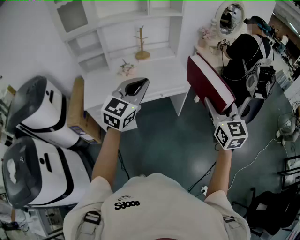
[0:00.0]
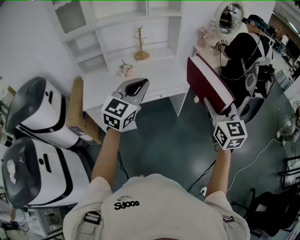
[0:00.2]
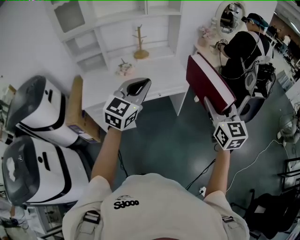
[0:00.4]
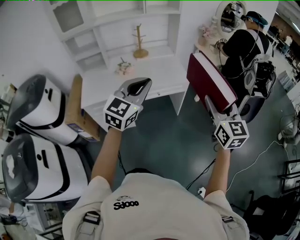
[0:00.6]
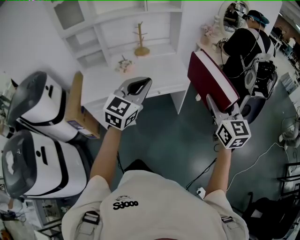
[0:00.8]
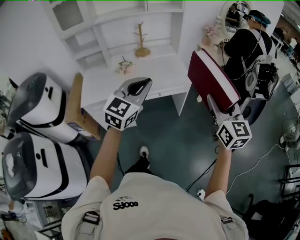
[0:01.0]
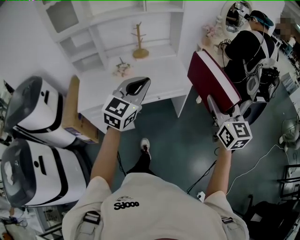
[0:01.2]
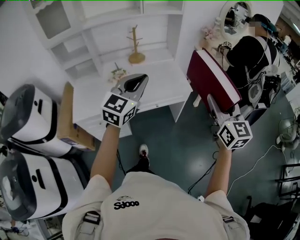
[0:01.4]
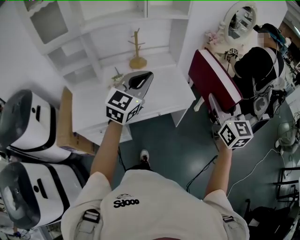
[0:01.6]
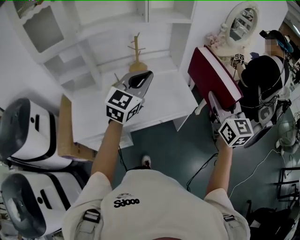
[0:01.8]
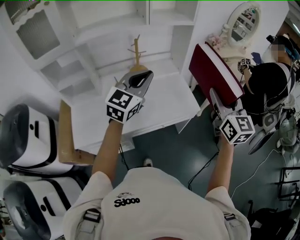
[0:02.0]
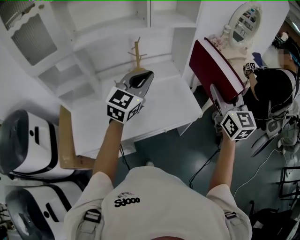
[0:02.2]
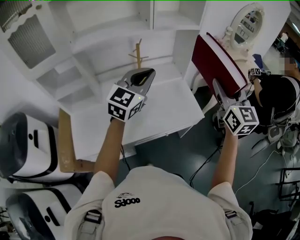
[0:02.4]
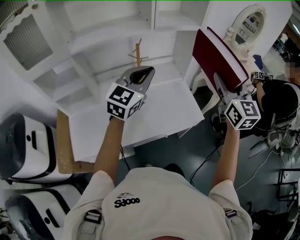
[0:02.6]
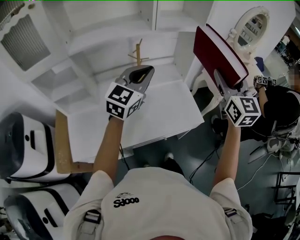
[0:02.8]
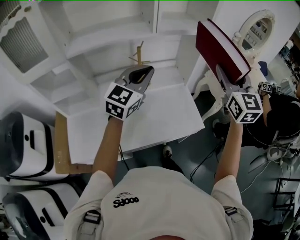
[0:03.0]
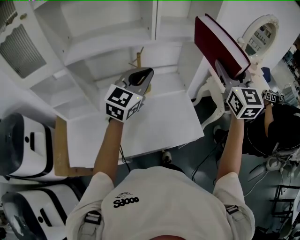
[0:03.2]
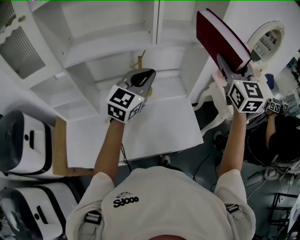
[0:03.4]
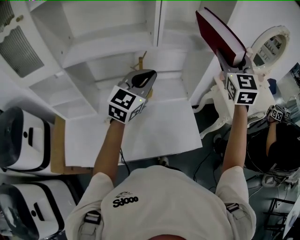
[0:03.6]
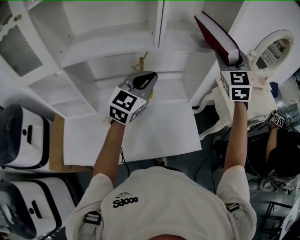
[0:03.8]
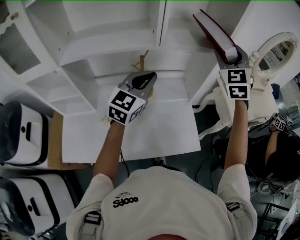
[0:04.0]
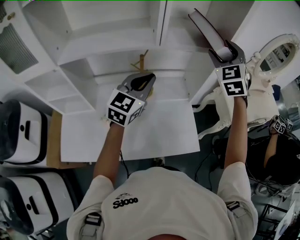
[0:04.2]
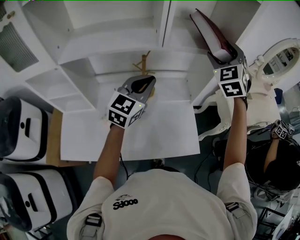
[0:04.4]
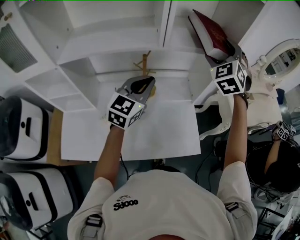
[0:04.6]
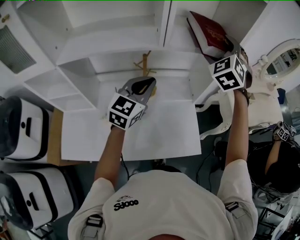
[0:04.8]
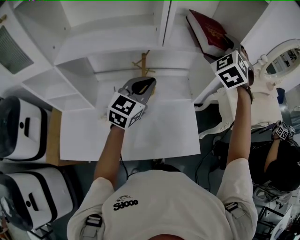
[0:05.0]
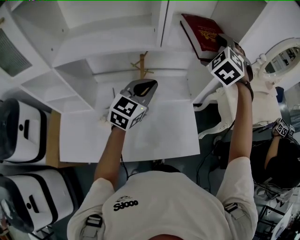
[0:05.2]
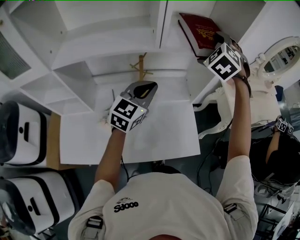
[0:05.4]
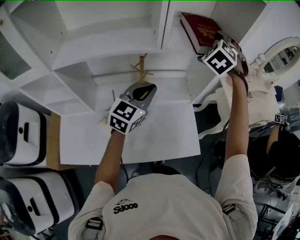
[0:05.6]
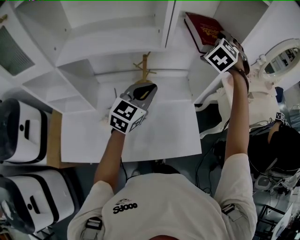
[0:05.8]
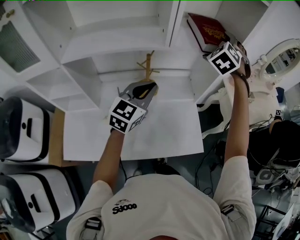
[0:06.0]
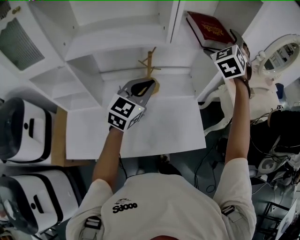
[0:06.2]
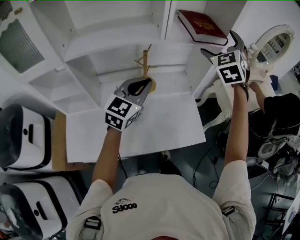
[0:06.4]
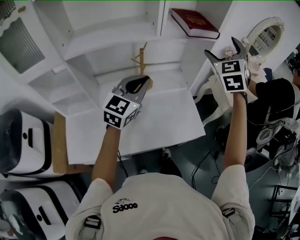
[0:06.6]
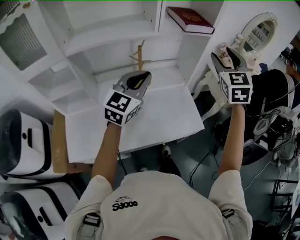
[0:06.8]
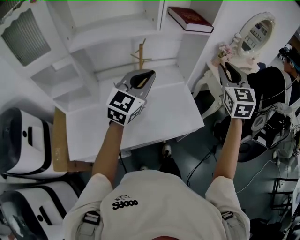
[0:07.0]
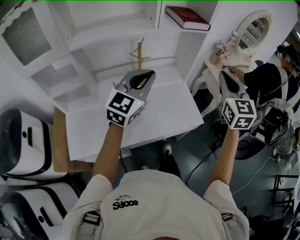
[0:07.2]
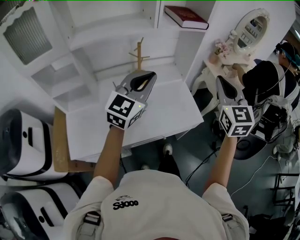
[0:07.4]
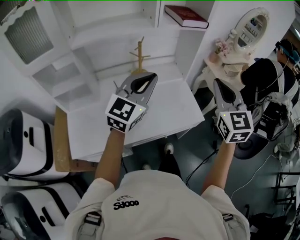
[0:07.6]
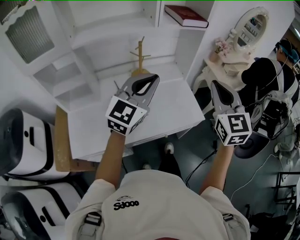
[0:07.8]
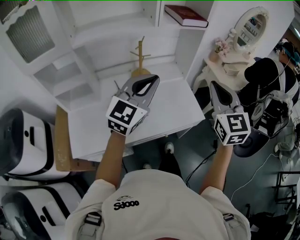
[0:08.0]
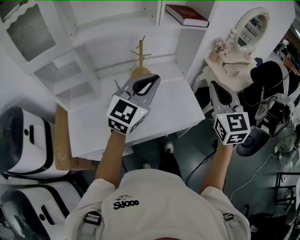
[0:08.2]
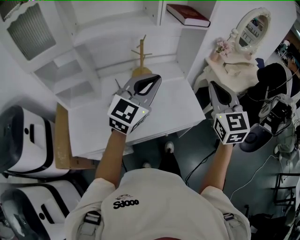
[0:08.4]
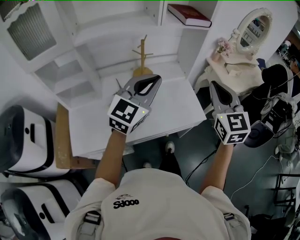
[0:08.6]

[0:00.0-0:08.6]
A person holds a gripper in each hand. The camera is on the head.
0.0 to 1.4 s: The grippers both shift forward by about 15 cm.
1.4 to 2.8 s: The left gripper travels forward by approximately 30 cm. Meanwhile the right gripper travels forward and to the left by approximately 35 cm.
2.8 to 4.4 s: The left gripper travels forward by some 15 cm. The right gripper shifts about 30 cm forward, and turns by some 40 degrees.
4.4 to 5.8 s: The right gripper shifts approximately 5 cm forward, swivels approximately 30 degrees, and opens up.
5.8 to 7.2 s: The right gripper moves backward and to the right, about 35 cm, rotates around the line of its fingers by about 50 degrees, clockwise from behind, and closes its fingers. The left gripper moves backward and upward, roughly 20 cm.
7.2 to 8.6 s: The left gripper moves backward, roughly 5 cm; the right gripper shifts approximately 10 cm backward.

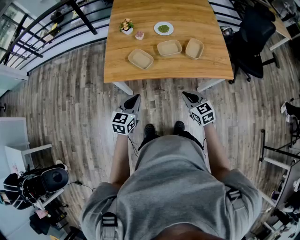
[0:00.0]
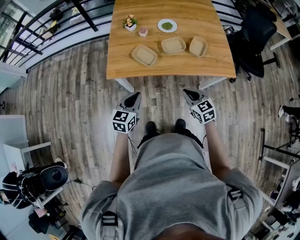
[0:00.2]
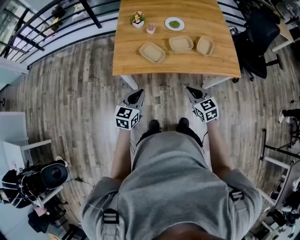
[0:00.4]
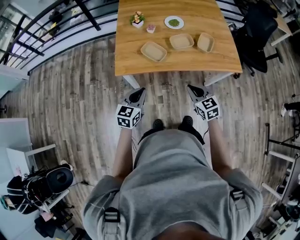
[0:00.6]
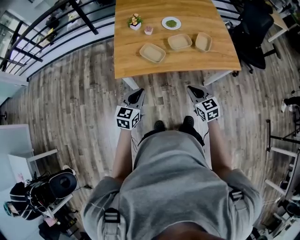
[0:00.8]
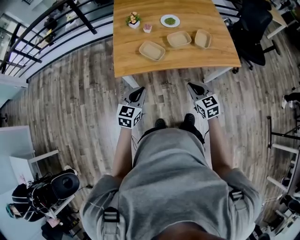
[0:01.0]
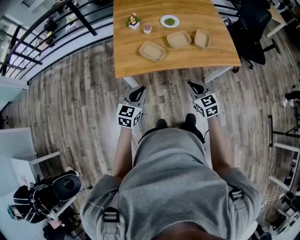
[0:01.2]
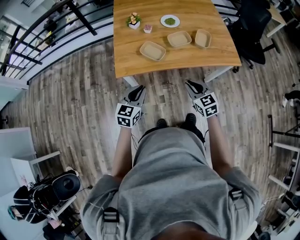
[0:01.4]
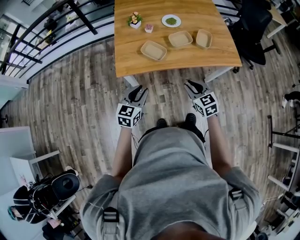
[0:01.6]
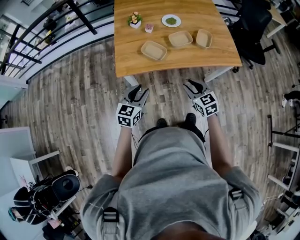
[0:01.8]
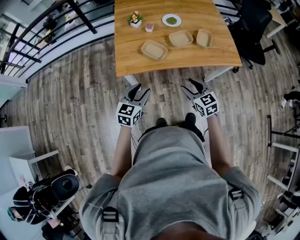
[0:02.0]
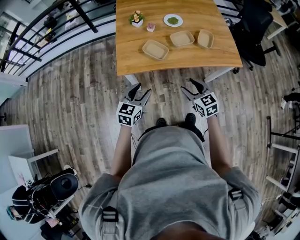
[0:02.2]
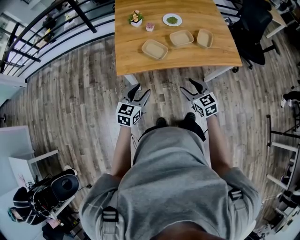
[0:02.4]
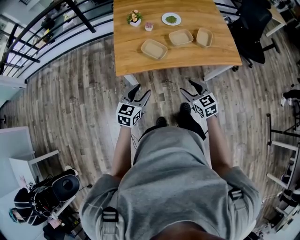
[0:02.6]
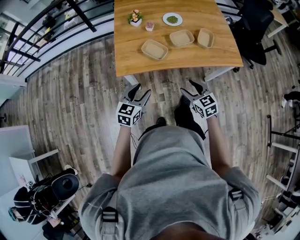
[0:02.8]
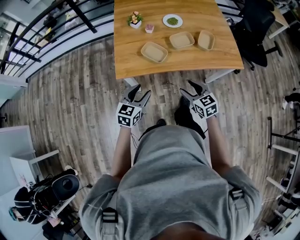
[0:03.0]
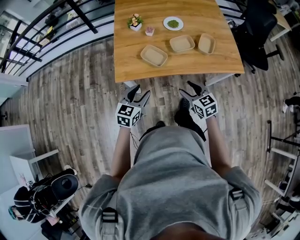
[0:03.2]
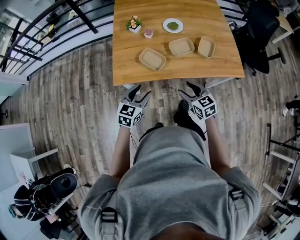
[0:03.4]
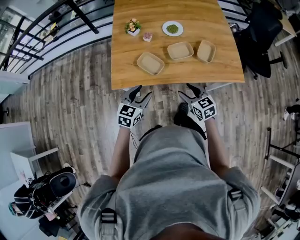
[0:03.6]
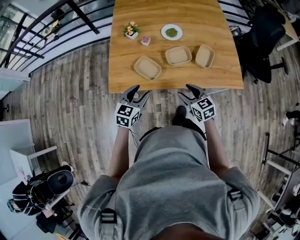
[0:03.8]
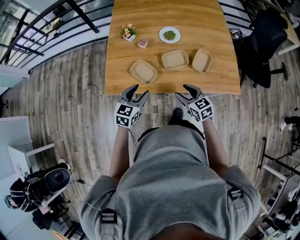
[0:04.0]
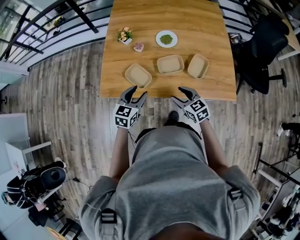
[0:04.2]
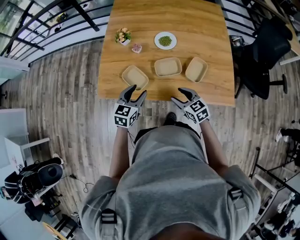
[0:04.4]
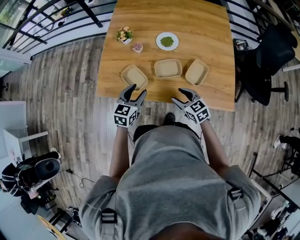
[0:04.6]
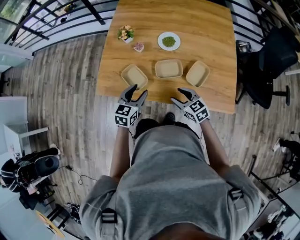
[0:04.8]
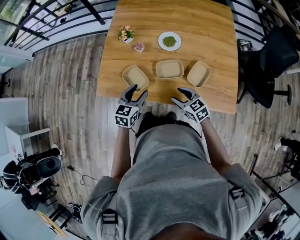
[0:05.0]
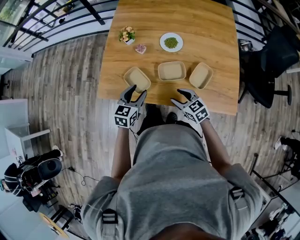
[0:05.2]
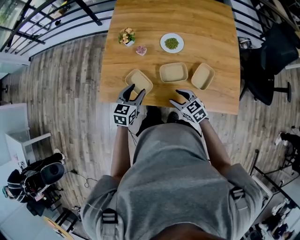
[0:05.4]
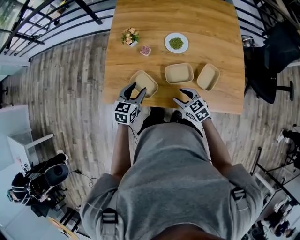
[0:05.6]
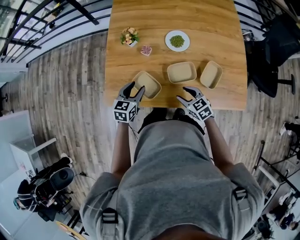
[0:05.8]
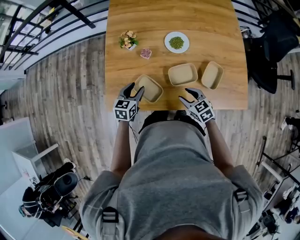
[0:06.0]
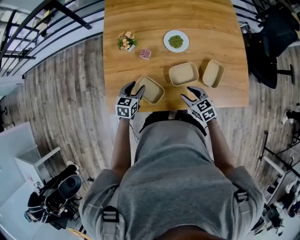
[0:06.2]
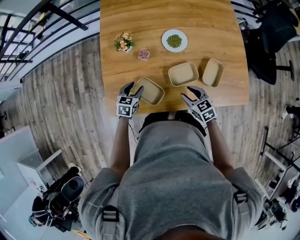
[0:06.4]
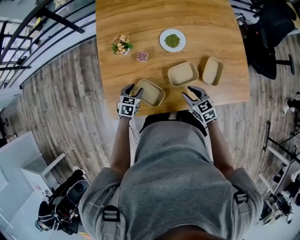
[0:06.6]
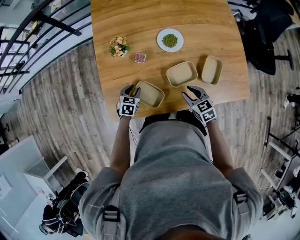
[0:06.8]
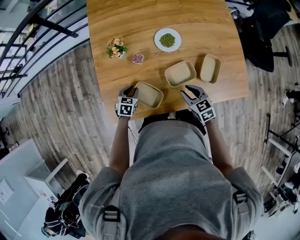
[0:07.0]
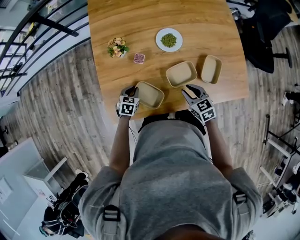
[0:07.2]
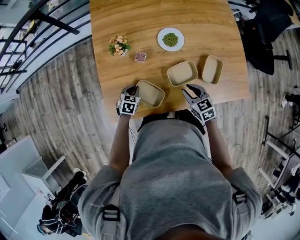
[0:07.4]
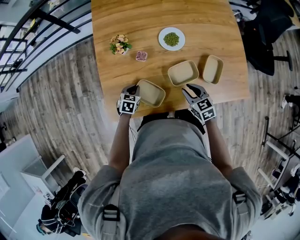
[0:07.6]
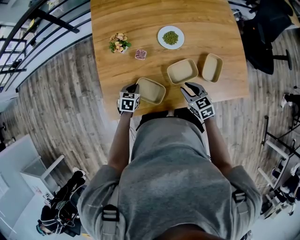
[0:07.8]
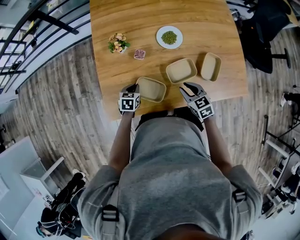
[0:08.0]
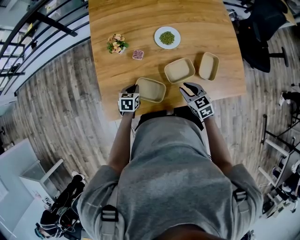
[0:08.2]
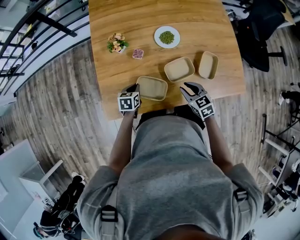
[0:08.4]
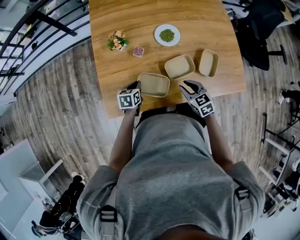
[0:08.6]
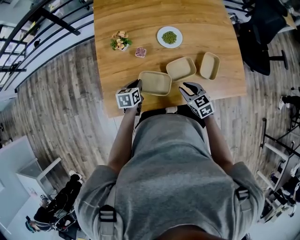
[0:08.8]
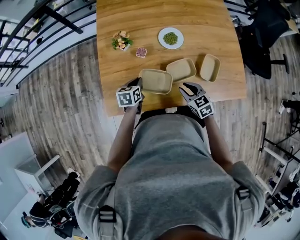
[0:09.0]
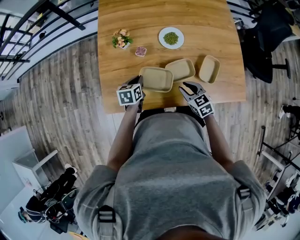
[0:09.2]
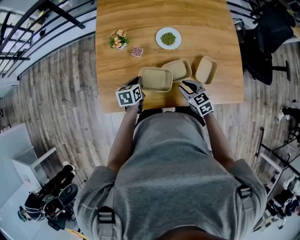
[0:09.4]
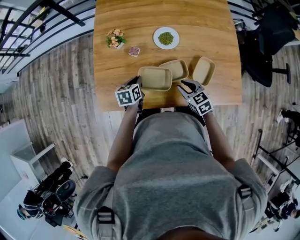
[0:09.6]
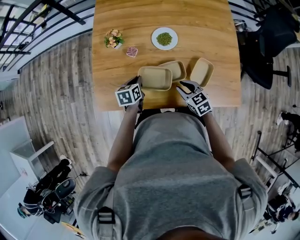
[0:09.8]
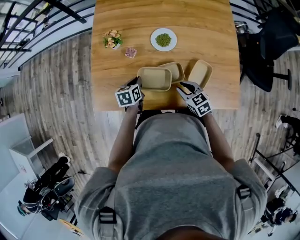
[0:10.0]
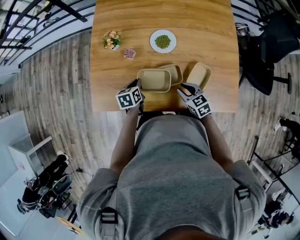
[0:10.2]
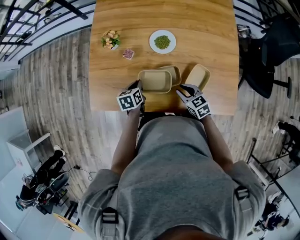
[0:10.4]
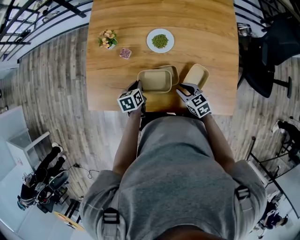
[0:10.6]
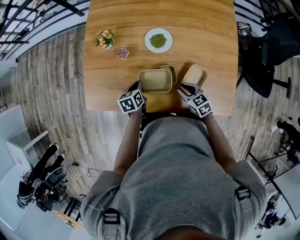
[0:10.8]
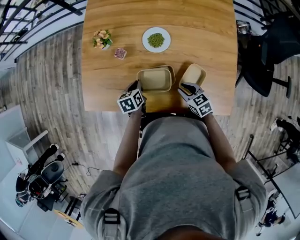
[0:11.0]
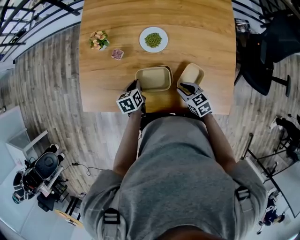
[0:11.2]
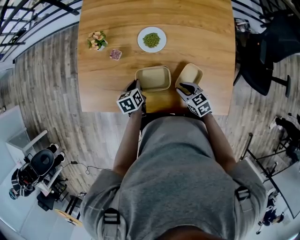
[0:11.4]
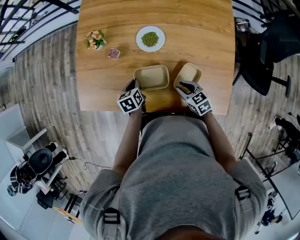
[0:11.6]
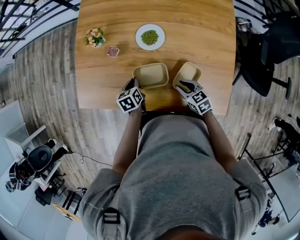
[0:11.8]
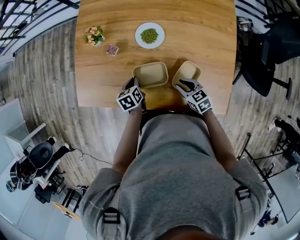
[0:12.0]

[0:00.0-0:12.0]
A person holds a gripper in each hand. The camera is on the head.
0.0 to 1.6 s: The grippers both shift to the left by about 10 cm. The right gripper opens its fingers, while the left gripper opens its fingers.
1.6 to 3.0 s: The right gripper opens up. Meanwhile the left gripper opens up.
3.0 to 4.4 s: The two grippers go approximately 25 cm forward and to the right.
4.4 to 6.0 s: The left gripper moves forward, downward and to the left, roughly 20 cm. The right gripper moves forward and downward, approximately 10 cm.
6.0 to 7.6 s: The right gripper closes, while the left gripper is displaced downward by about 10 cm, turns by some 20 degrees, and closes its fingers.
7.6 to 9.0 s: The left gripper shifts some 10 cm upward, and swivels some 30 degrees.
9.0 to 10.4 s: The grippers both shift to the right by approximately 10 cm.
10.4 to 12.0 s: Both grippers travel together to the right, about 5 cm.

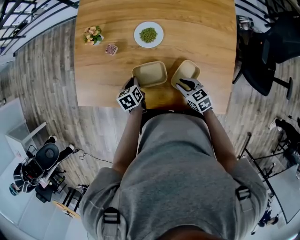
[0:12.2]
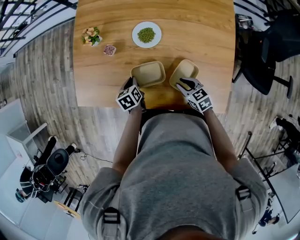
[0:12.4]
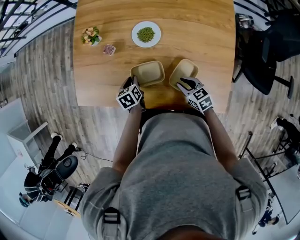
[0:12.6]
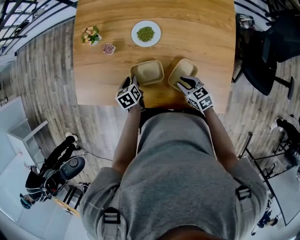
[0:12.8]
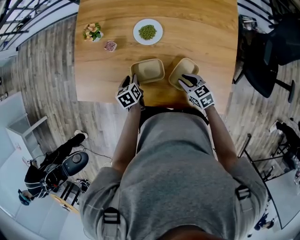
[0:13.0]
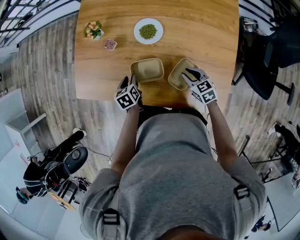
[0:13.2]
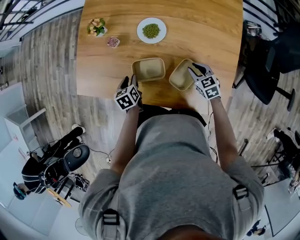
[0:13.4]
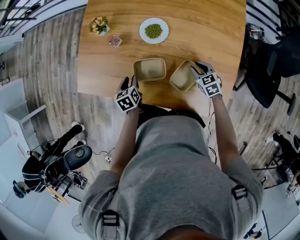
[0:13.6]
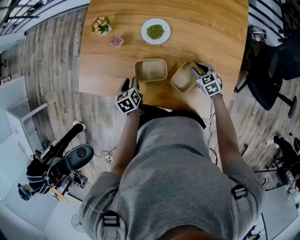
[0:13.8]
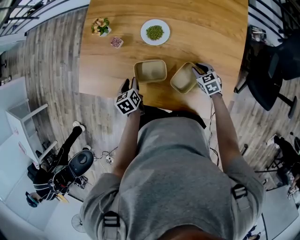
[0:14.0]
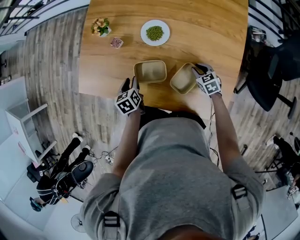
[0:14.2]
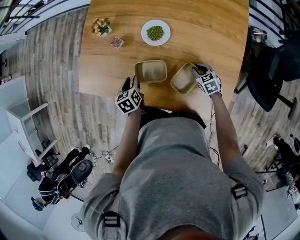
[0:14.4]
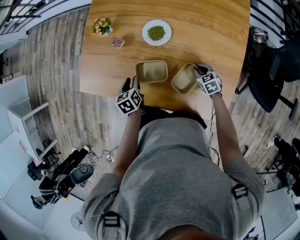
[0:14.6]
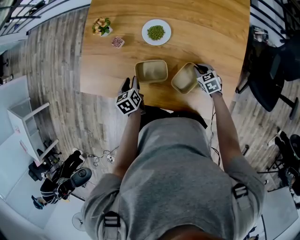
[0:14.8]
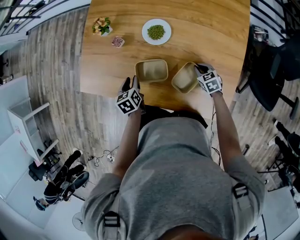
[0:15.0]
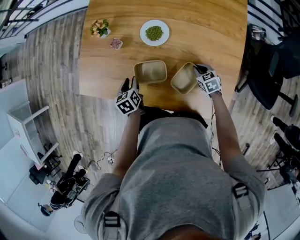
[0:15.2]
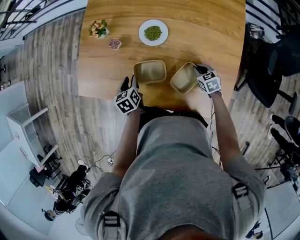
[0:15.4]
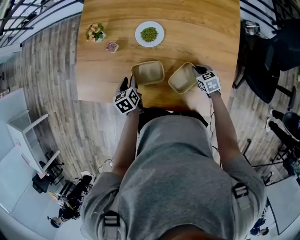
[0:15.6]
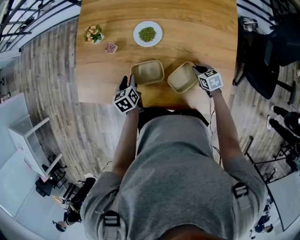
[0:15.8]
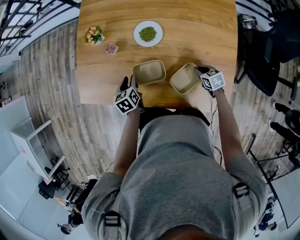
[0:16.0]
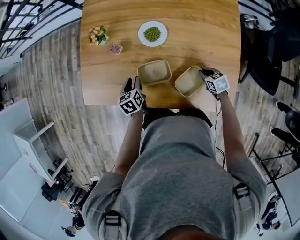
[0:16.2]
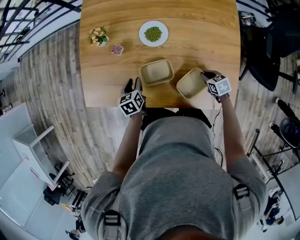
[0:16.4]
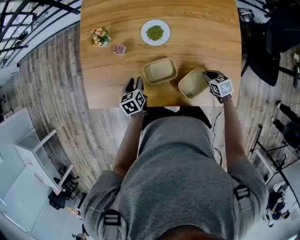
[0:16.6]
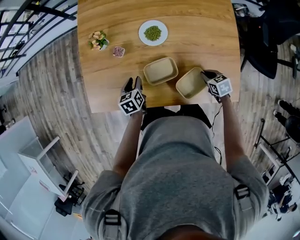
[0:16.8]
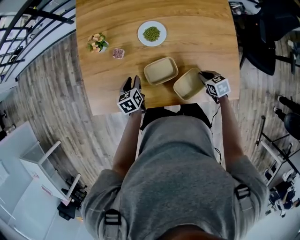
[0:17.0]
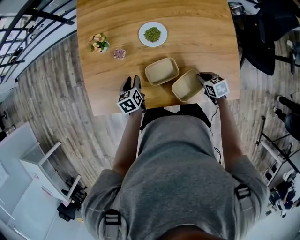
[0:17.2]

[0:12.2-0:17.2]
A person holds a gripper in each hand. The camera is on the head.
12.2 to 13.8 s: The right gripper travels to the right by some 10 cm; the left gripper opens.
13.8 to 15.6 s: The right gripper closes up.
15.6 to 17.2 s: The right gripper heads to the left and backward, covering approximately 10 cm, while the left gripper changes place by approximately 5 cm.
